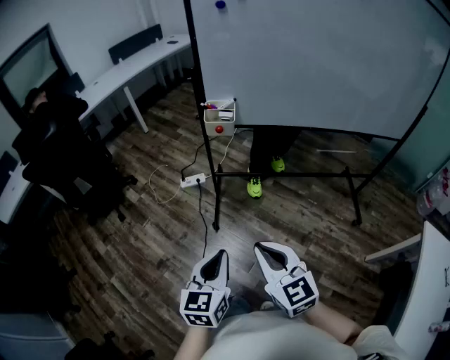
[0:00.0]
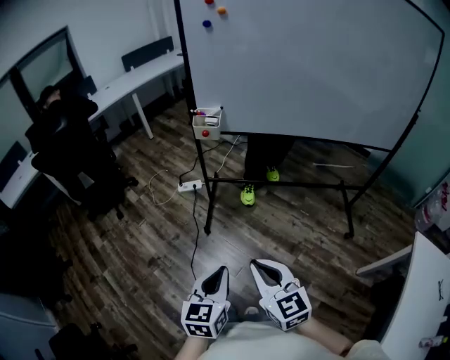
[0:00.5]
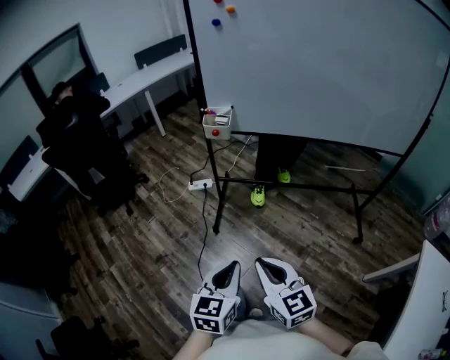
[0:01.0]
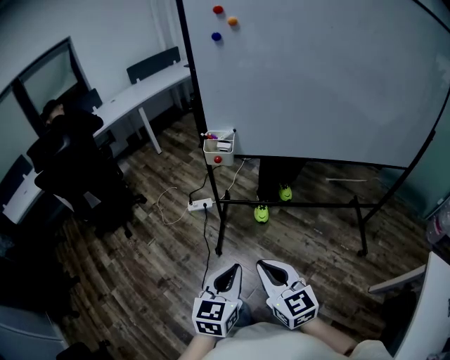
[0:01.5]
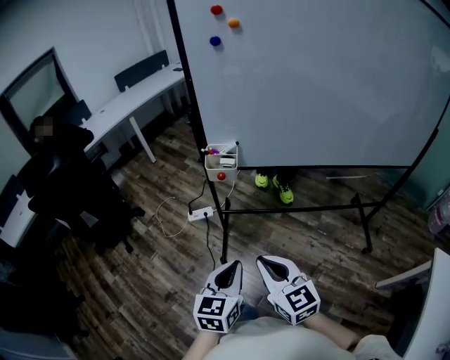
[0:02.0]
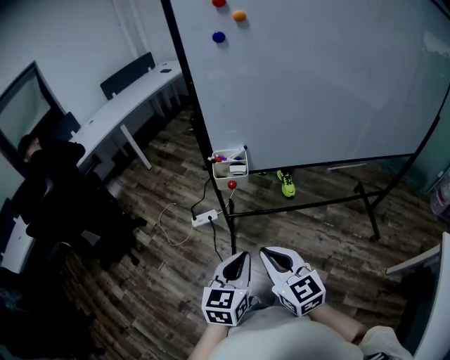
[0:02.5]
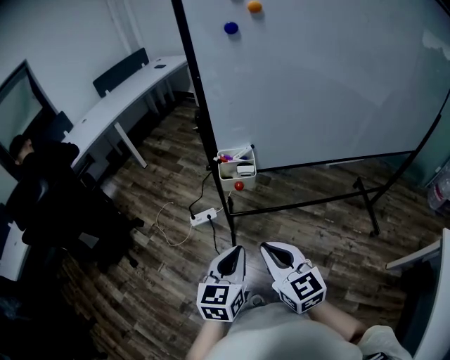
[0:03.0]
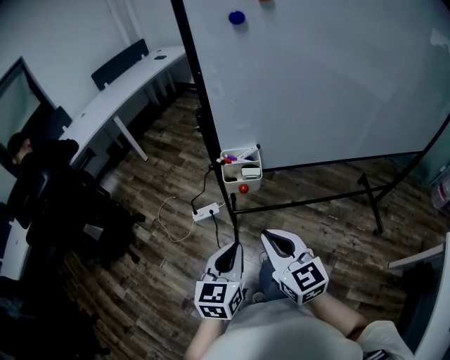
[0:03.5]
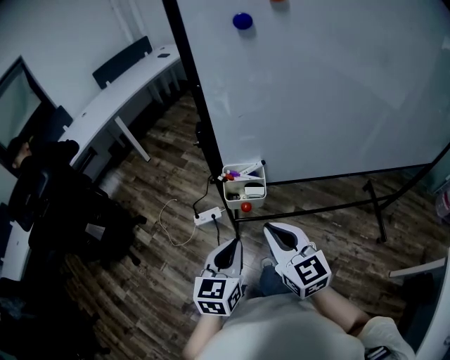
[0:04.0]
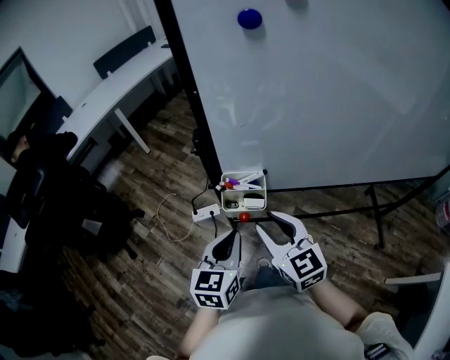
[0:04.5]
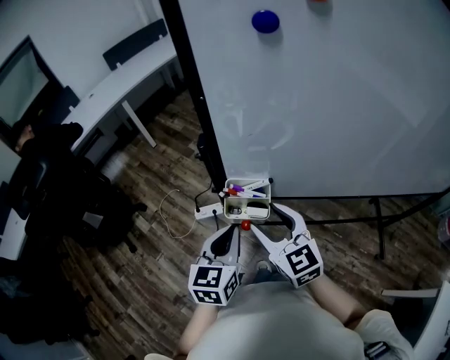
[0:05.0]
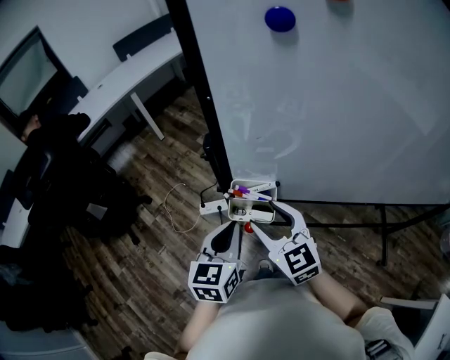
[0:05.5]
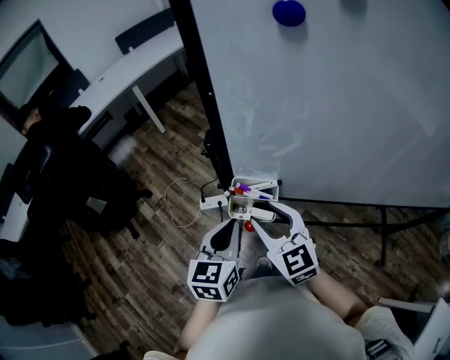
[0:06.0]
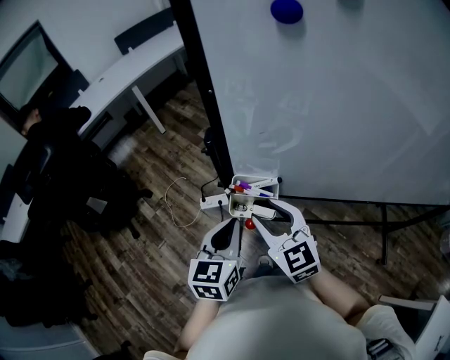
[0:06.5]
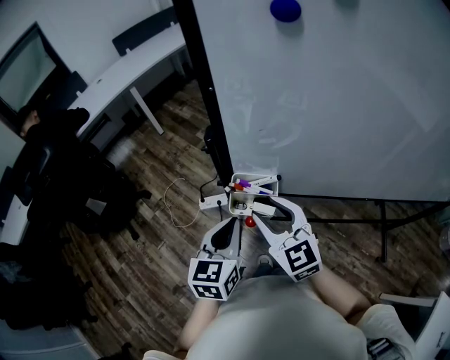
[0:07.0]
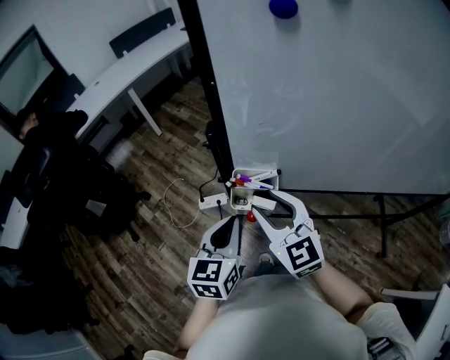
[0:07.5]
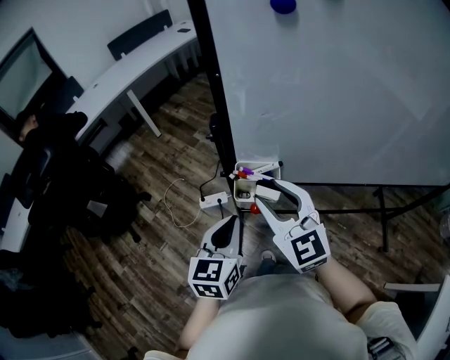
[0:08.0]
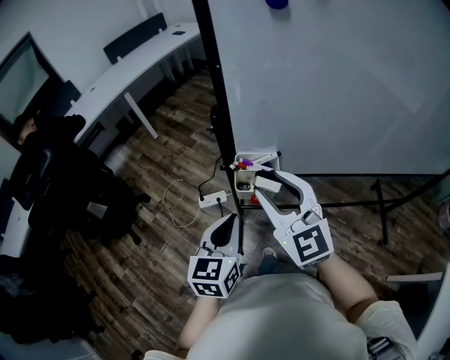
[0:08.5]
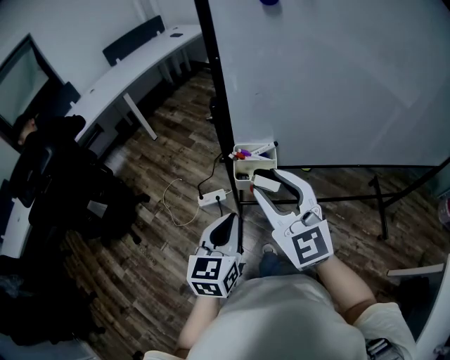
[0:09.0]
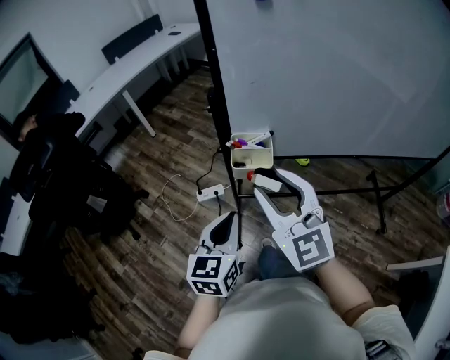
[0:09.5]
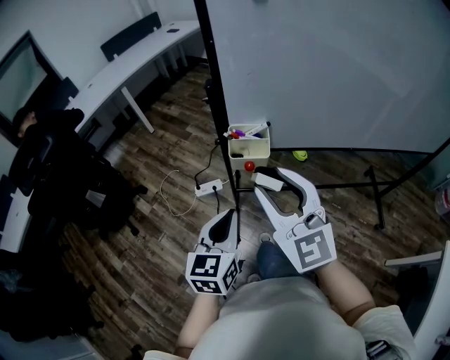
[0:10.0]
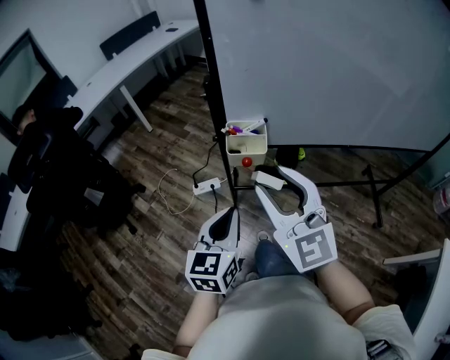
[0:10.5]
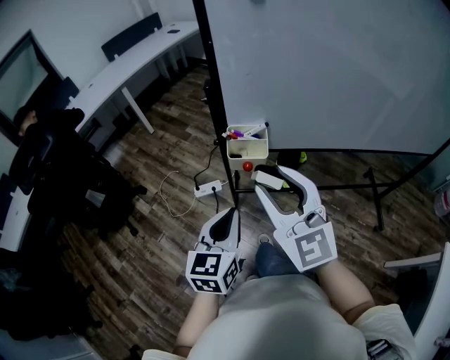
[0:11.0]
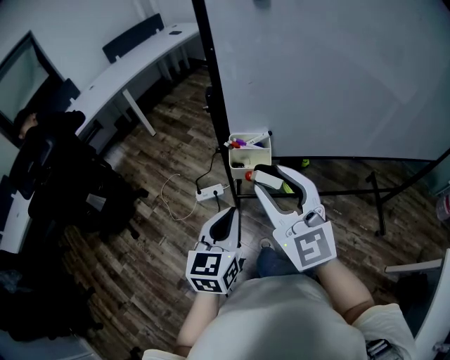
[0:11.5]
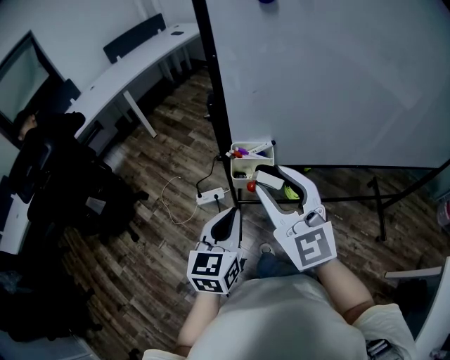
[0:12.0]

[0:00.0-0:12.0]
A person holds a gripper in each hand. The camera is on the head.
0:00.0 to 0:02.0: The left gripper heads forward and to the right, covering approximately 10 cm. Meanwhile the right gripper is displaced forward by some 10 cm.
0:02.0 to 0:04.0: The two grippers go approximately 25 cm forward.
0:04.0 to 0:06.0: Both grippers move forward, some 10 cm. The right gripper opens up.
0:06.0 to 0:08.0: The right gripper travels upward by approximately 5 cm.
0:08.0 to 0:10.0: The left gripper travels backward by about 10 cm. The right gripper heads backward and upward, covering approximately 15 cm.
0:10.0 to 0:12.0: Both grippers move forward, some 5 cm.

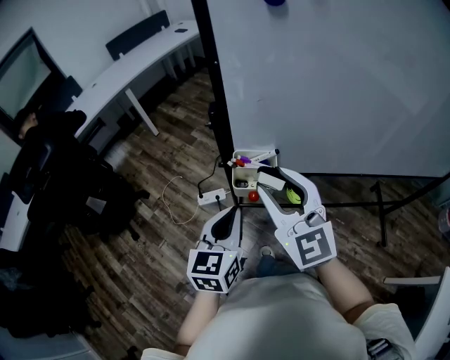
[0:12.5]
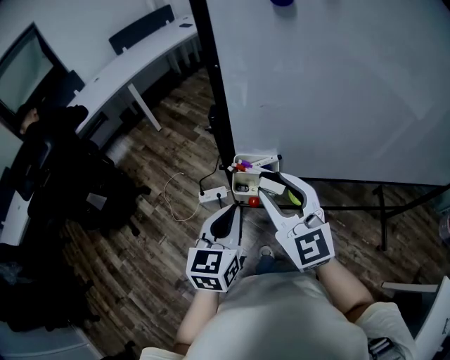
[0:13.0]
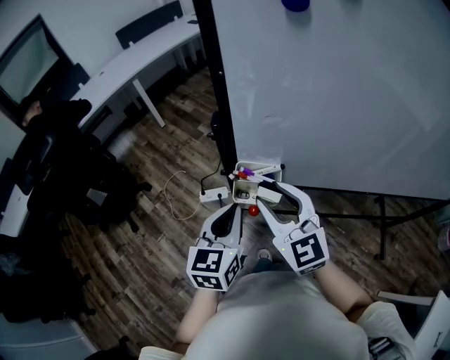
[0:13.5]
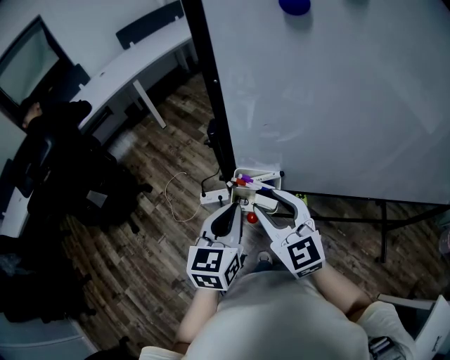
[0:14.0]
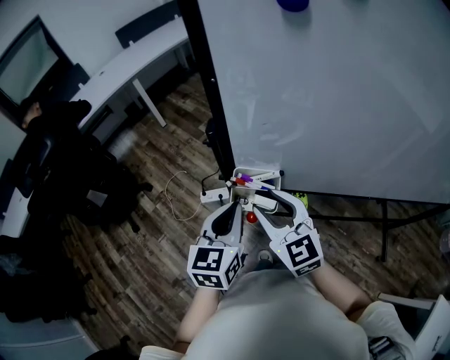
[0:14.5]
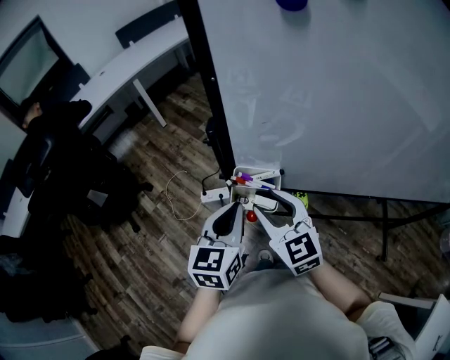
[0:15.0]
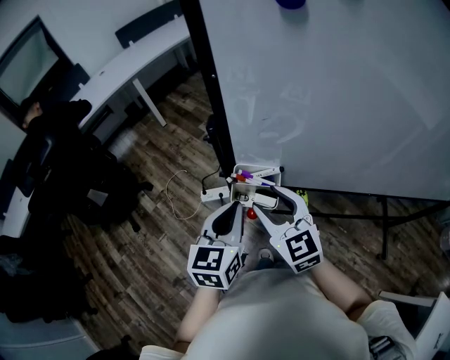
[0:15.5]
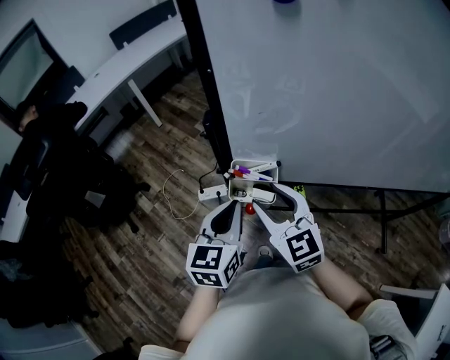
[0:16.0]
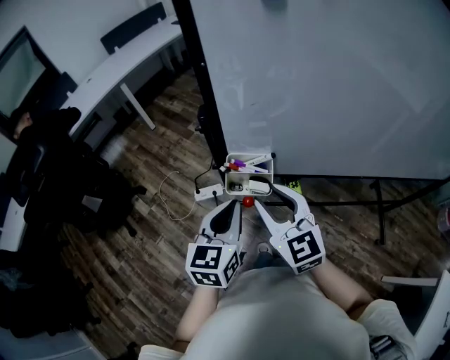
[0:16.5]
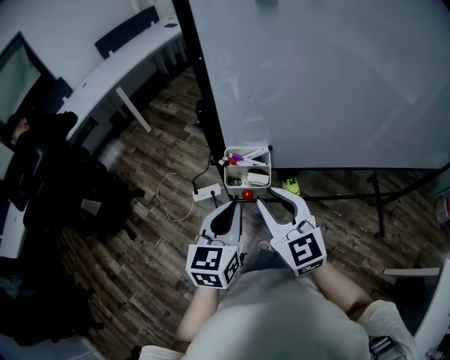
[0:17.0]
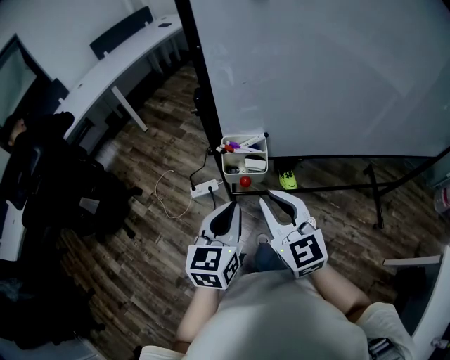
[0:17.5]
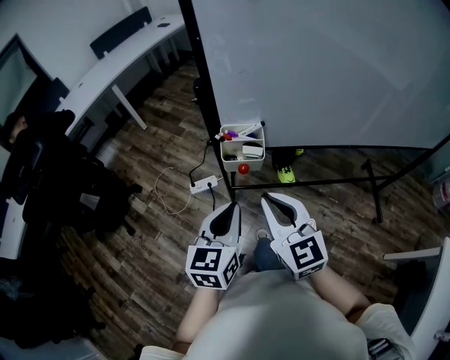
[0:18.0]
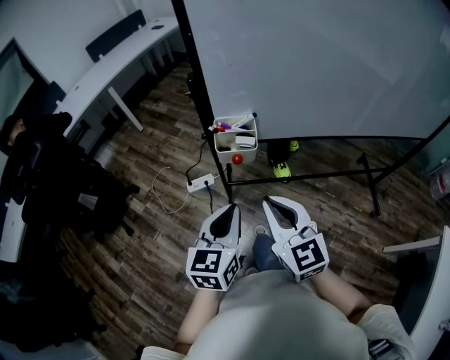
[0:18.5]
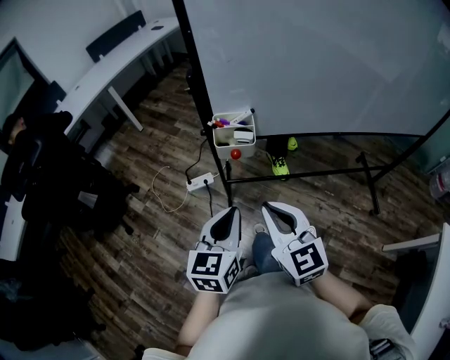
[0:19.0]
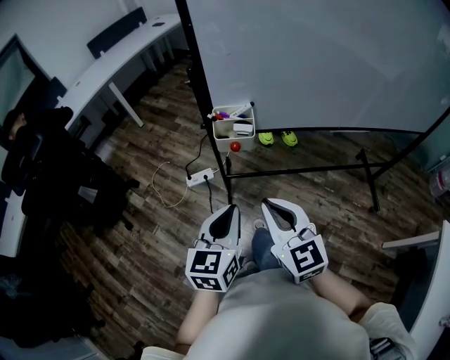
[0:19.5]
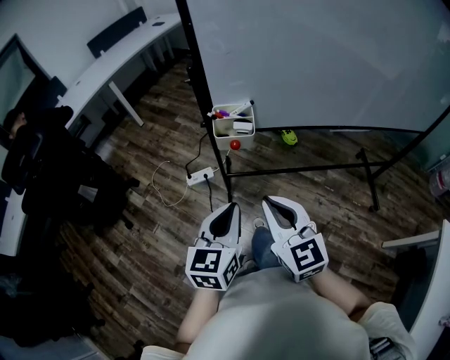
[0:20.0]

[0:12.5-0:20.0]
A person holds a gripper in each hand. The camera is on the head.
0:12.5 to 0:14.5: The left gripper shifts approximately 5 cm forward; the right gripper moves downward and forward, approximately 10 cm.
0:14.5 to 0:16.5: There are only small adjustments of the grippers.
0:16.5 to 0:18.0: Both grippers move backward, approximately 10 cm. The right gripper closes its fingers.
0:18.0 to 0:20.0: The two grippers go about 10 cm backward.

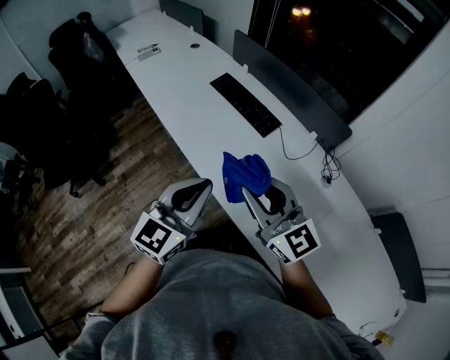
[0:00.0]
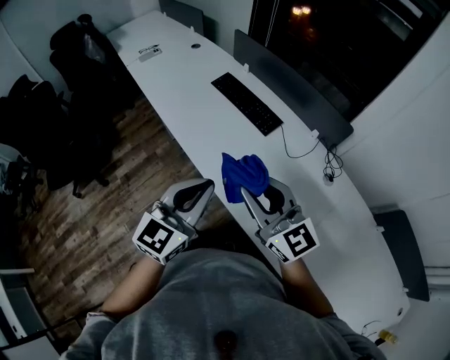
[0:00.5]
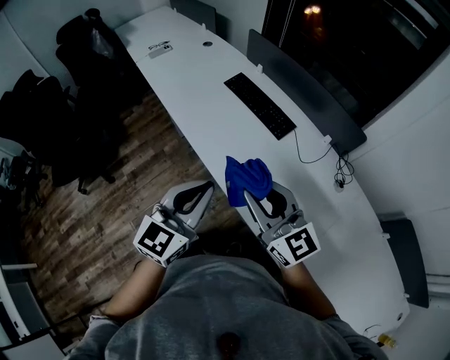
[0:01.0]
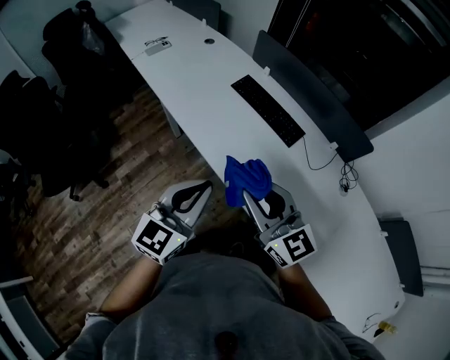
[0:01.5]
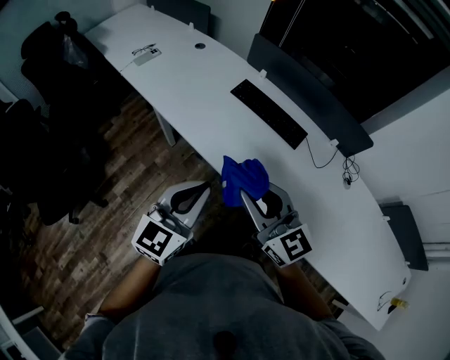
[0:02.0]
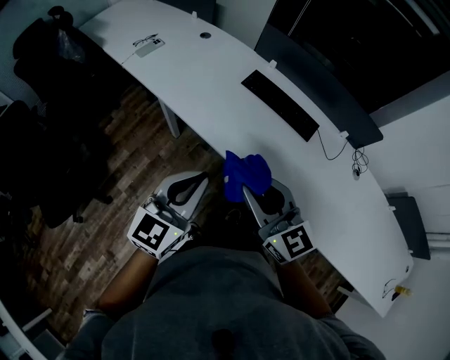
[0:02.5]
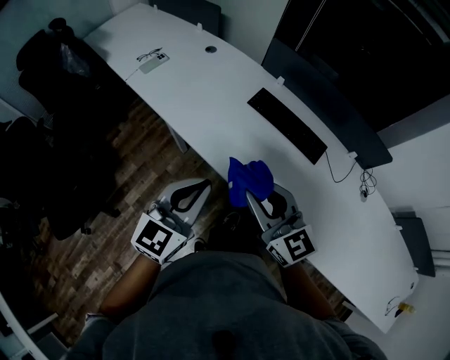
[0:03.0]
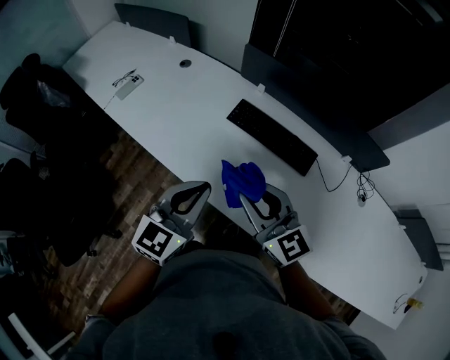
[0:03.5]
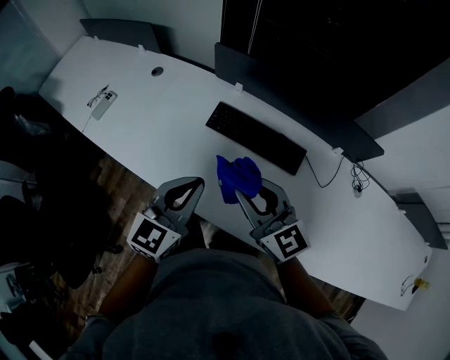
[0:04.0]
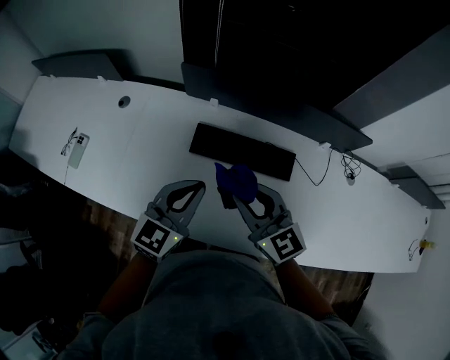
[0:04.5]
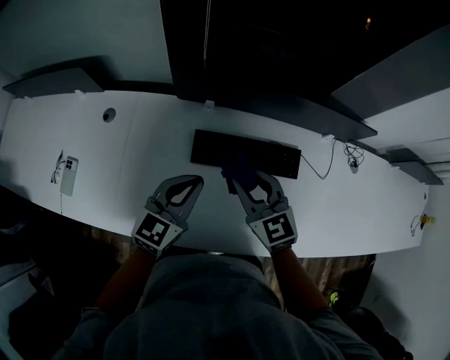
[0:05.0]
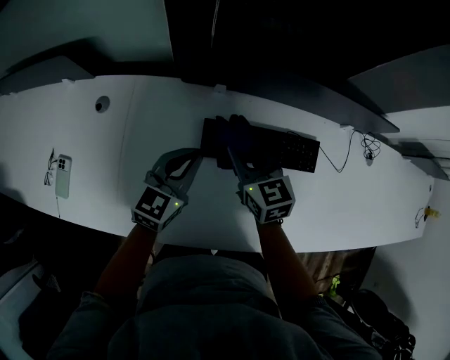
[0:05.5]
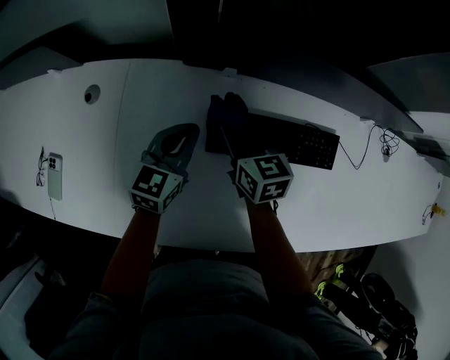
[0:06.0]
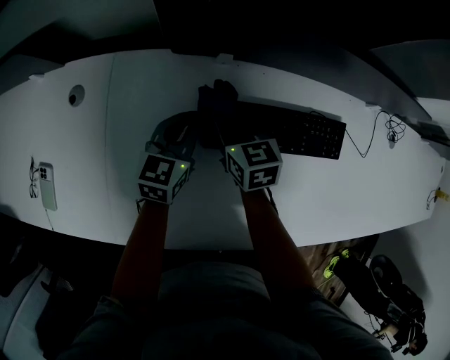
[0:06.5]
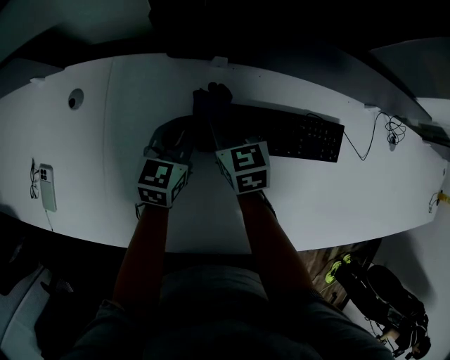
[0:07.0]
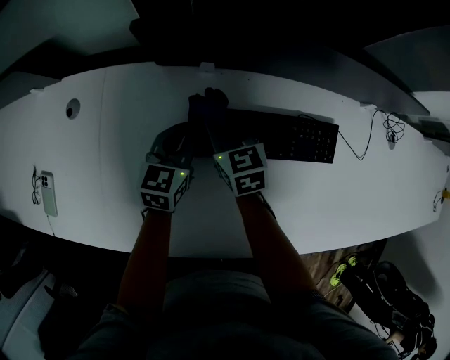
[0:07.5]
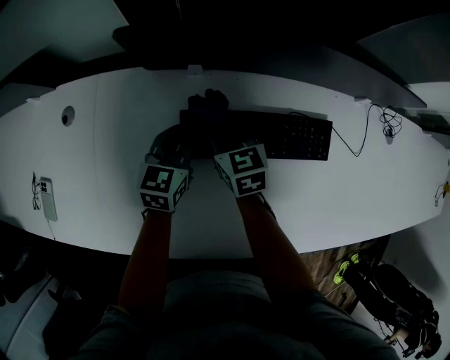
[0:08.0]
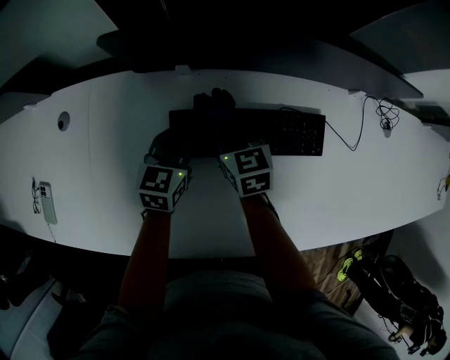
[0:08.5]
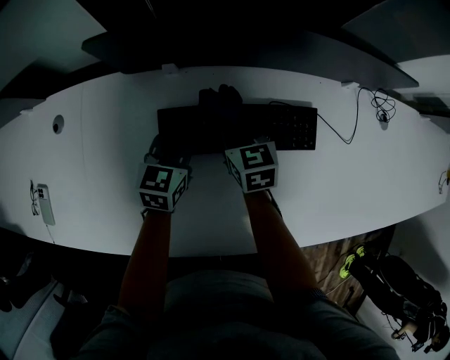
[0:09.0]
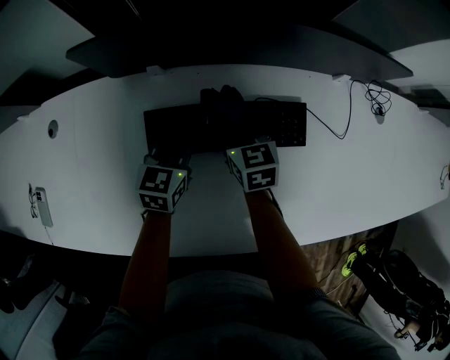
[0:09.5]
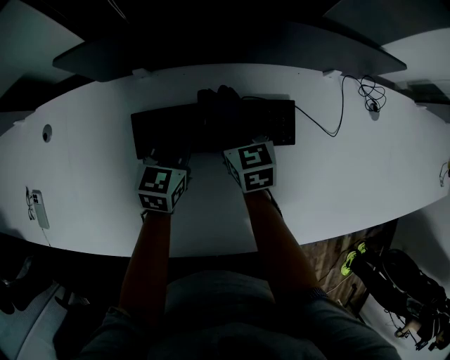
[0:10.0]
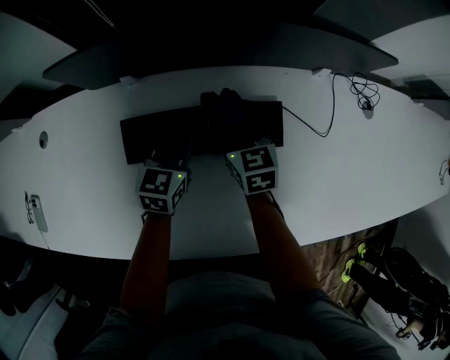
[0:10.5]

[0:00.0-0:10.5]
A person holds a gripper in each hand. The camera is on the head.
0:00.0 to 0:02.0: The grippers both shift to the left and forward by approximately 25 cm.
0:02.0 to 0:04.0: Both grippers move forward, some 25 cm.
0:04.0 to 0:06.5: The left gripper shifts by about 50 cm, and swivels about 20 degrees. The right gripper shifts by approximately 50 cm, and turns by about 50 degrees.
0:06.5 to 0:08.5: The two grippers go some 10 cm to the right.
0:08.5 to 0:10.5: Both grippers move to the right, roughly 15 cm.
